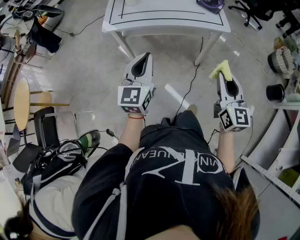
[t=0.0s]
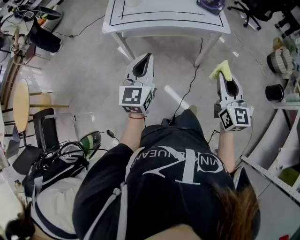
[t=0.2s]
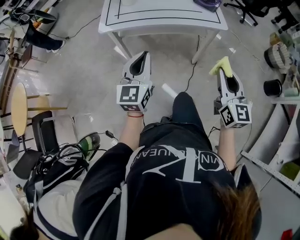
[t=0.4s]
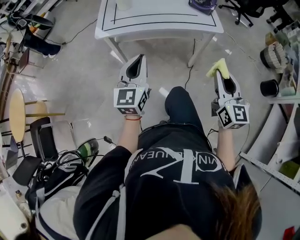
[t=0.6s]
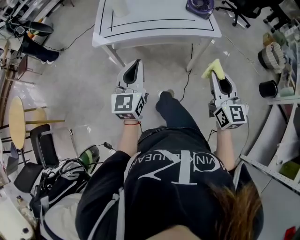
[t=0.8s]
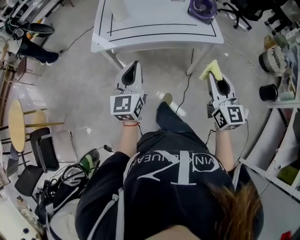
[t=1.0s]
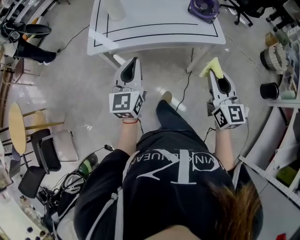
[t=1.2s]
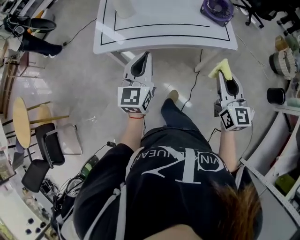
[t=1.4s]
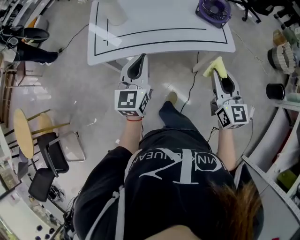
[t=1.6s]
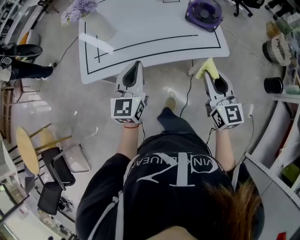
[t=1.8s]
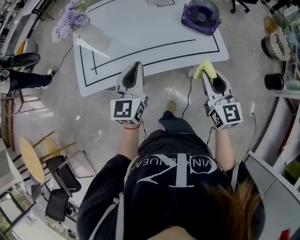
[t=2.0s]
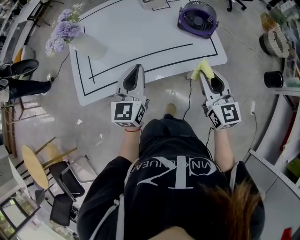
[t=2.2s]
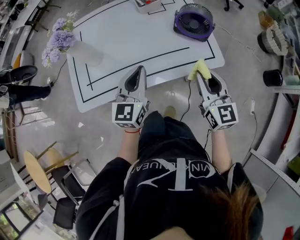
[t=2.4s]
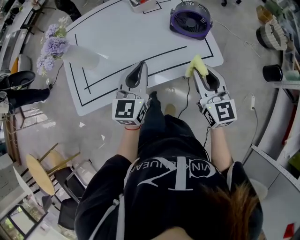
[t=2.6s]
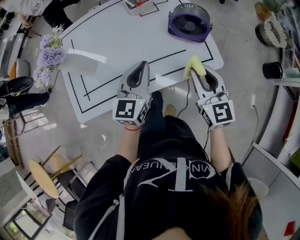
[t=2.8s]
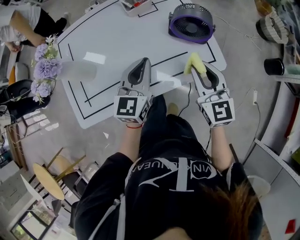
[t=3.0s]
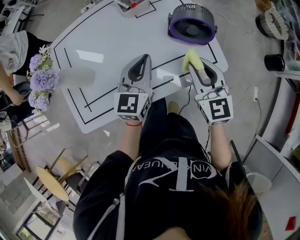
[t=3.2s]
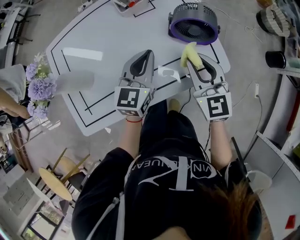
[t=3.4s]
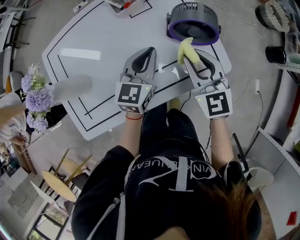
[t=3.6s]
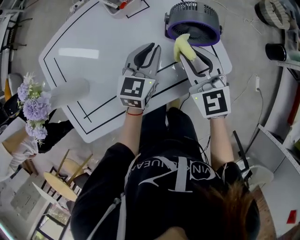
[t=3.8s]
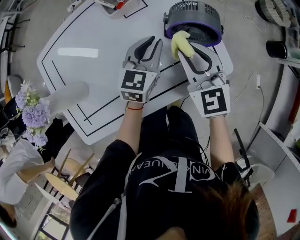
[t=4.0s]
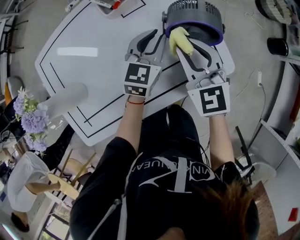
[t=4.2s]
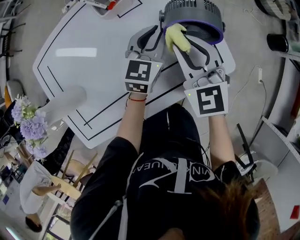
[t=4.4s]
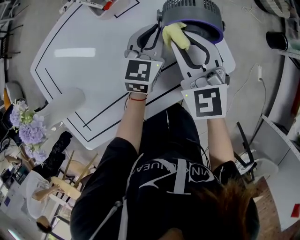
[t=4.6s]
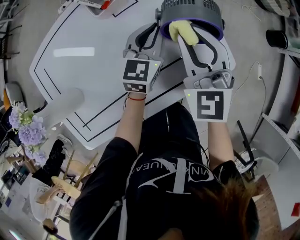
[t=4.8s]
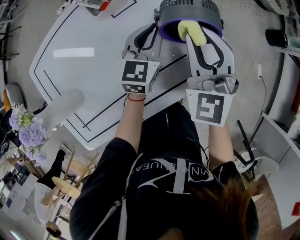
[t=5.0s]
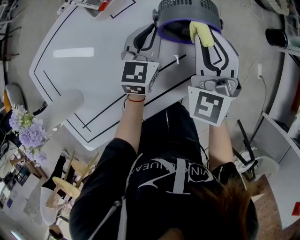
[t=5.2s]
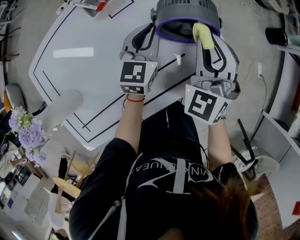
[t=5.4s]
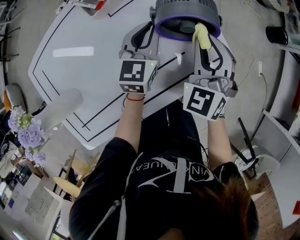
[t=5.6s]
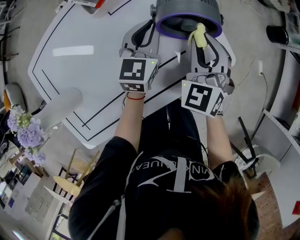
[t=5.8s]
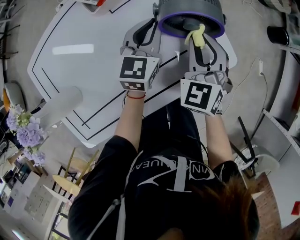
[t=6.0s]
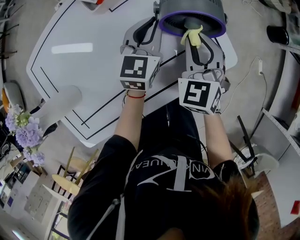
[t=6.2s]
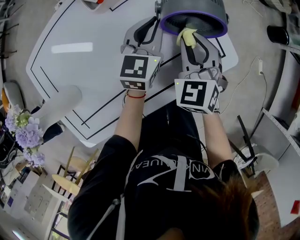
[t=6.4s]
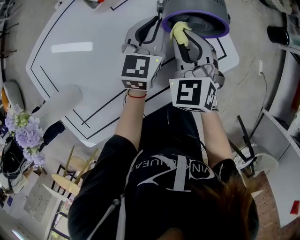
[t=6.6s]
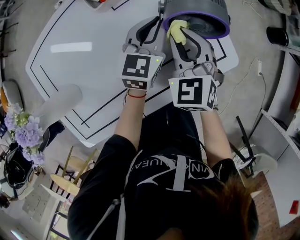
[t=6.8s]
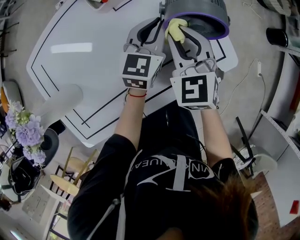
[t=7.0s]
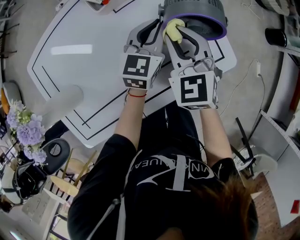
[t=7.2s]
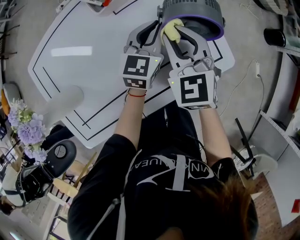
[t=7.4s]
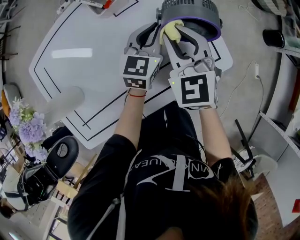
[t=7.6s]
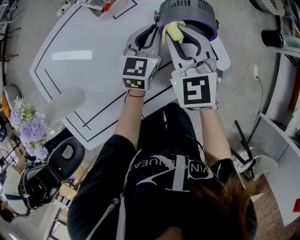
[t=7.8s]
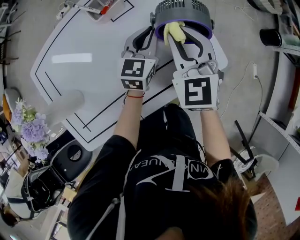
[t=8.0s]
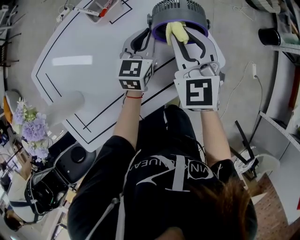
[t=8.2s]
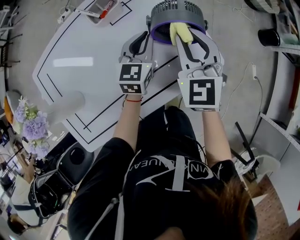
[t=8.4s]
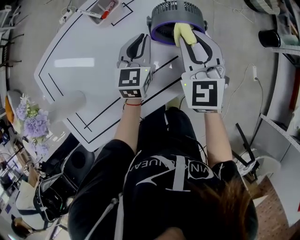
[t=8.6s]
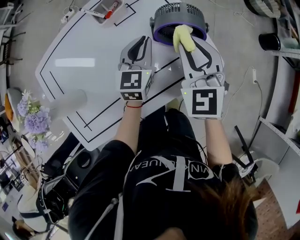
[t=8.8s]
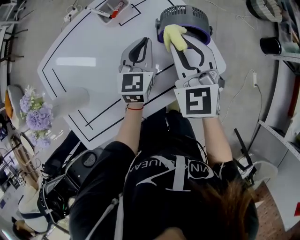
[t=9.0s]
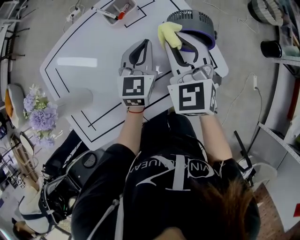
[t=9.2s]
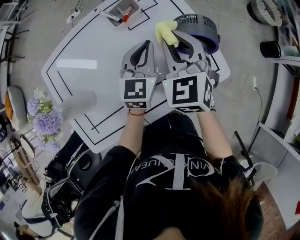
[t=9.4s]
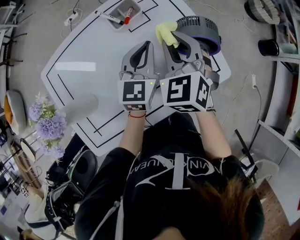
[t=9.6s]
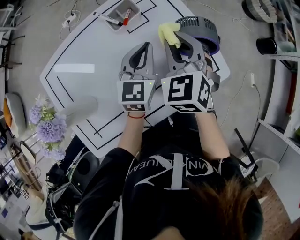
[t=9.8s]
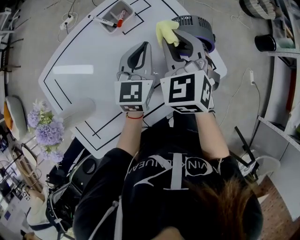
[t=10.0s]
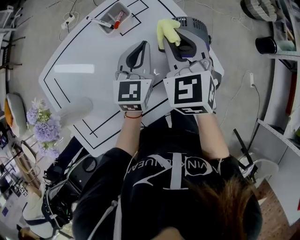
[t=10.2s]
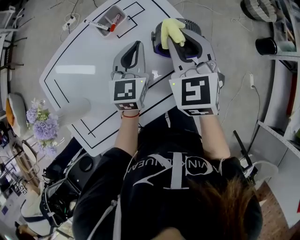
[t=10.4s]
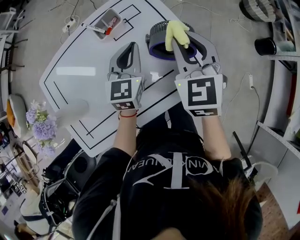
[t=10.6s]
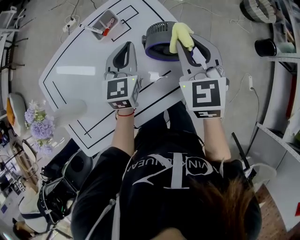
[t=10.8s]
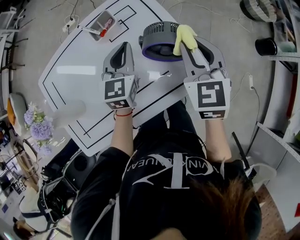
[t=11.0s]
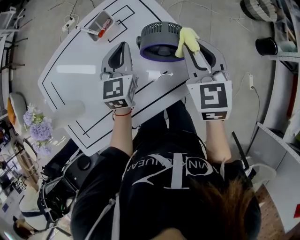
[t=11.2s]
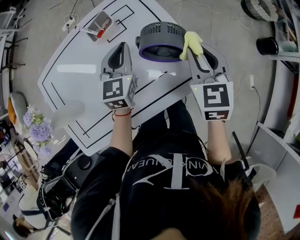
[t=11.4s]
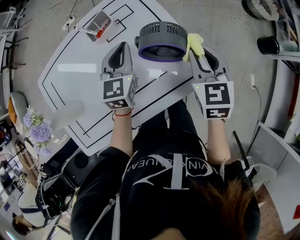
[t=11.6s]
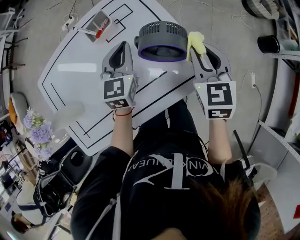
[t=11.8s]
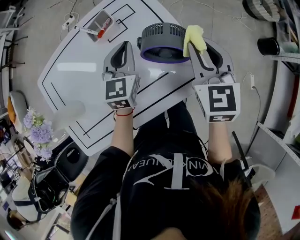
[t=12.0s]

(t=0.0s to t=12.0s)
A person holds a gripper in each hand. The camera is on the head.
t=0.0s - t=1.6s: The two grippers go about 25 cm forward.
t=1.6s - t=3.0s: The left gripper moves forward and to the right, some 25 cm. The right gripper is displaced forward by roughly 20 cm.
t=3.0s - t=4.4s: The right gripper is displaced forward by about 15 cm; the left gripper heads forward, downward and to the right, covering about 20 cm, and swivels some 20 degrees.
t=4.4s - t=6.0s: The right gripper is displaced to the right by about 5 cm, and changes its angle by roughly 30 degrees.
t=6.0s - t=7.6s: The right gripper travels to the left by roughly 10 cm.
t=7.6s - t=9.0s: The right gripper goes approximately 5 cm upward. The left gripper changes place by roughly 5 cm.
t=9.0s - t=10.4s: The left gripper moves approximately 5 cm. The right gripper changes place by about 5 cm.
t=10.4s - t=12.0s: The right gripper heads to the right, covering approximately 10 cm.

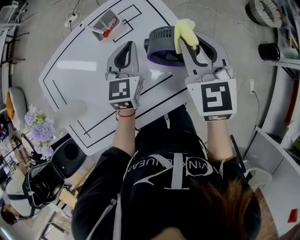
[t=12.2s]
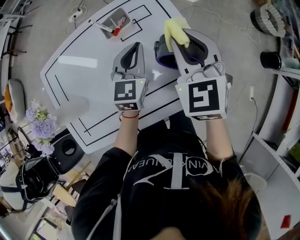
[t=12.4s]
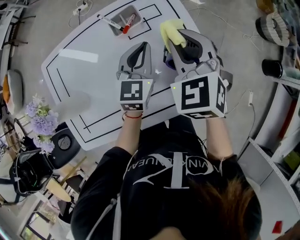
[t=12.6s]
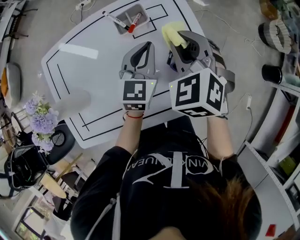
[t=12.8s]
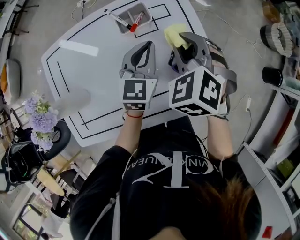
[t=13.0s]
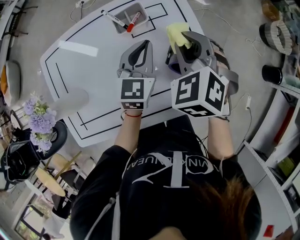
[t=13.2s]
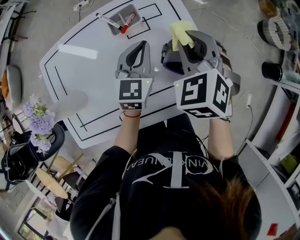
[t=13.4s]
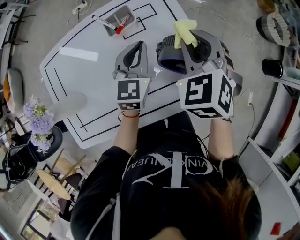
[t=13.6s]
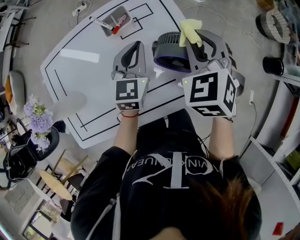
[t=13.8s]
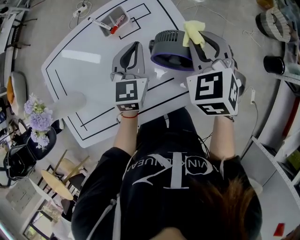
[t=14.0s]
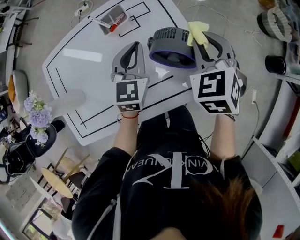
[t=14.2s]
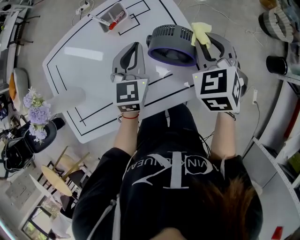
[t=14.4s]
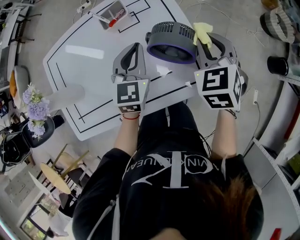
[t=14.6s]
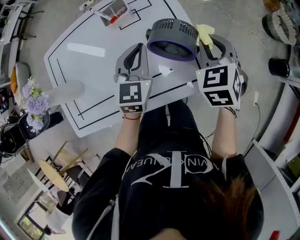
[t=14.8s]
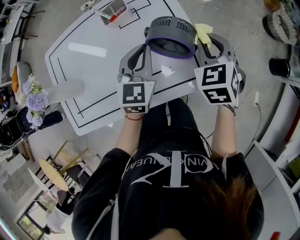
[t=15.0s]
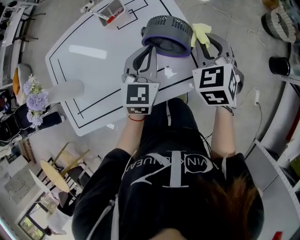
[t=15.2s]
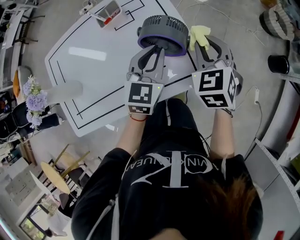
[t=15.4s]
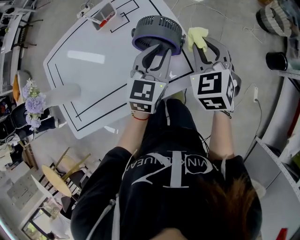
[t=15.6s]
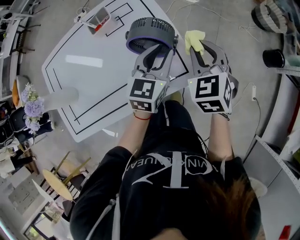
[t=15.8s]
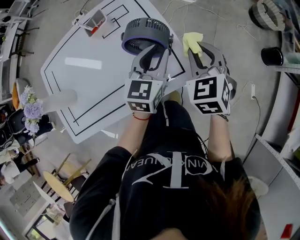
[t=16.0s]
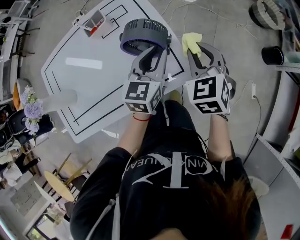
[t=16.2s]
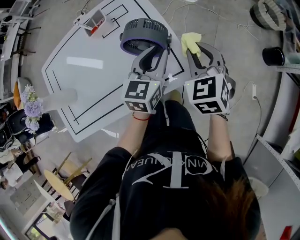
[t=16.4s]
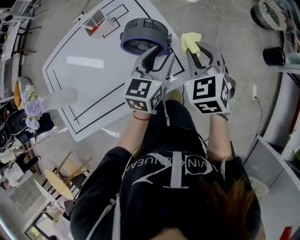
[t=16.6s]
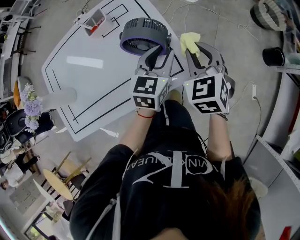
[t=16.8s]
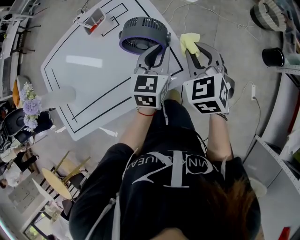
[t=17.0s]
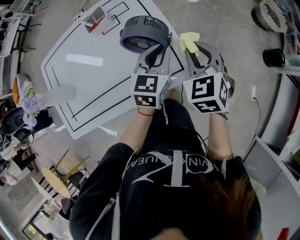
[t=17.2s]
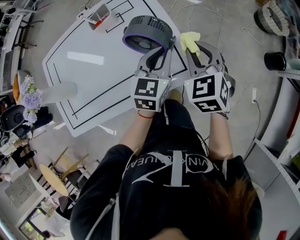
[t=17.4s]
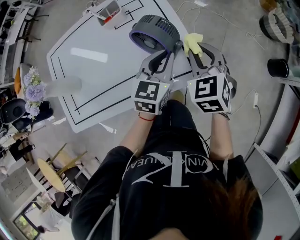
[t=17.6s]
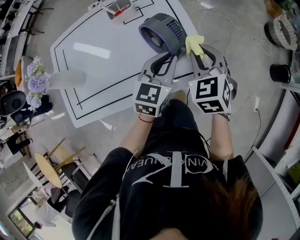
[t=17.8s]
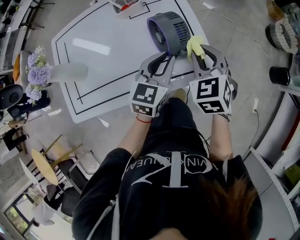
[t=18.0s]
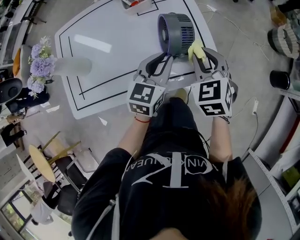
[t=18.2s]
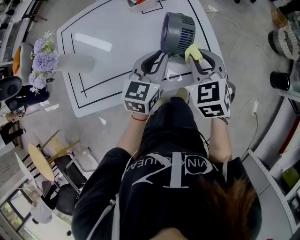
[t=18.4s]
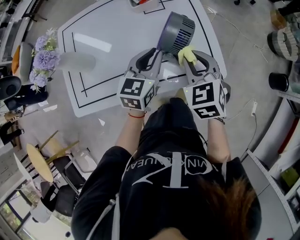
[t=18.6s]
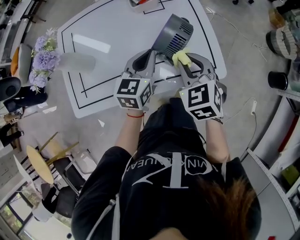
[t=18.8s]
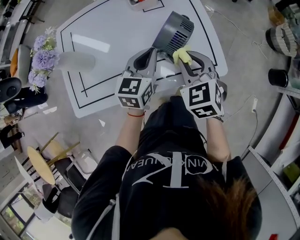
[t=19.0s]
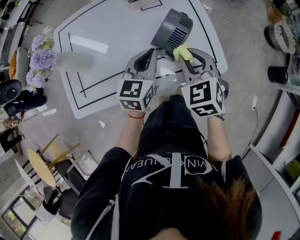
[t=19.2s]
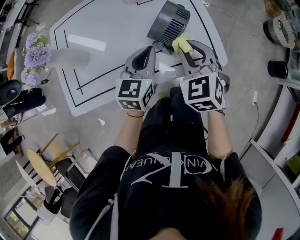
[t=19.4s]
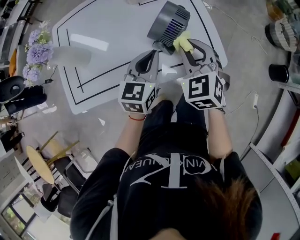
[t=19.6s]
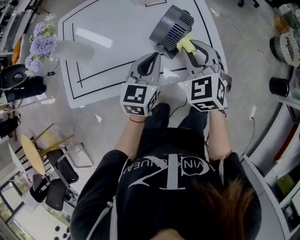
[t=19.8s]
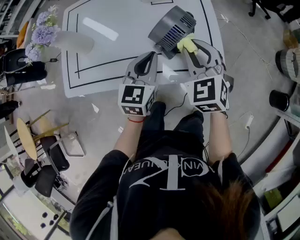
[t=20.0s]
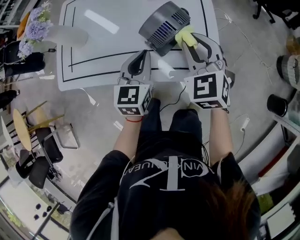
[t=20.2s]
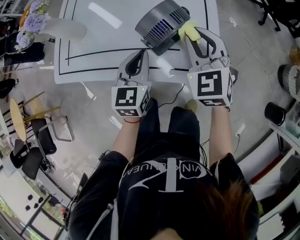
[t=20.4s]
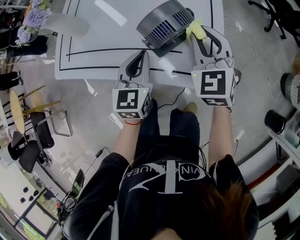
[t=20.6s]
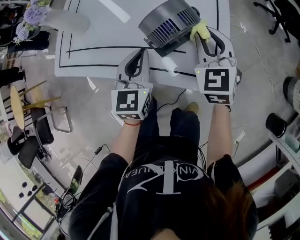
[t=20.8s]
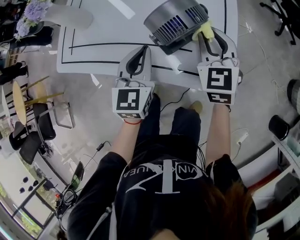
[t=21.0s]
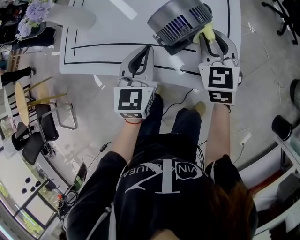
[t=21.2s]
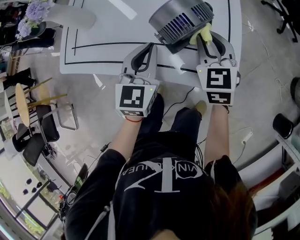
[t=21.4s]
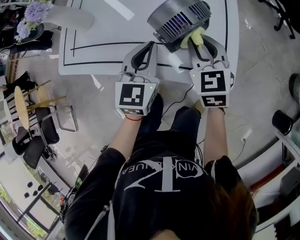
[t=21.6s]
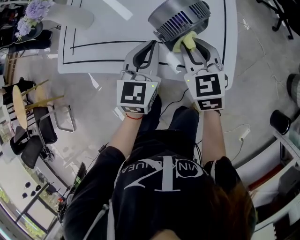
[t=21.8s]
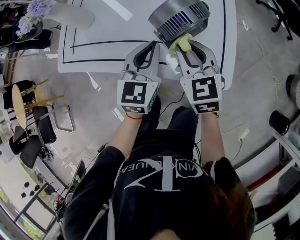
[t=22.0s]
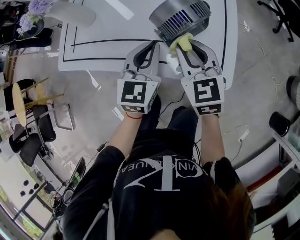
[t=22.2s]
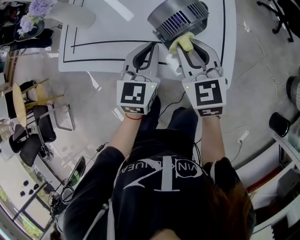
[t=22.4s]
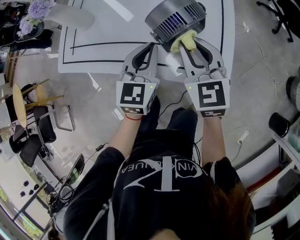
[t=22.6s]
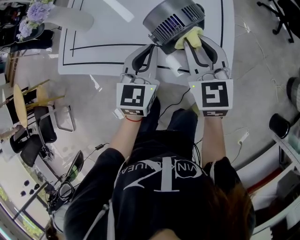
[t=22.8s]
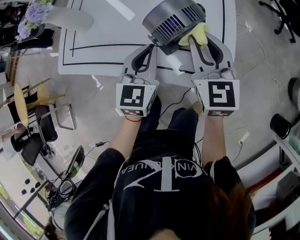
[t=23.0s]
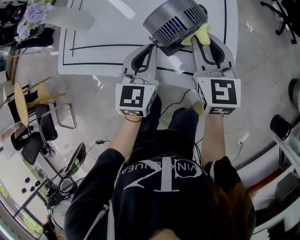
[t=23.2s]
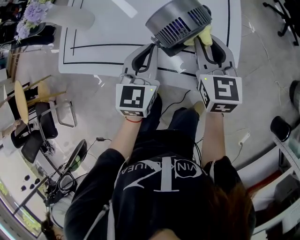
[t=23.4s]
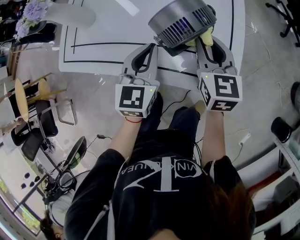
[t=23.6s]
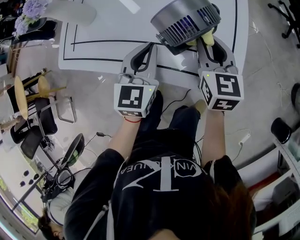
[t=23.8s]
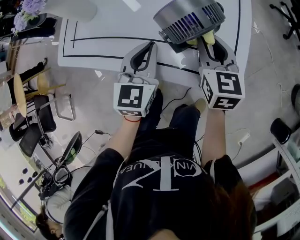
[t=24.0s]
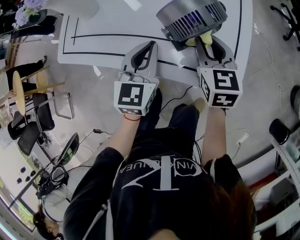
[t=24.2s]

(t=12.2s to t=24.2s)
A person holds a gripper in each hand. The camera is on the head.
t=12.2s - t=13.8s: The right gripper goes to the left and returns, some 10 cm each way, and rotates about 30 degrees.
t=13.8s - t=15.2s: The left gripper travels to the right and backward by about 10 cm, while the right gripper travels to the right by approximately 10 cm.
t=15.2s - t=16.6s: The right gripper heads to the right, covering about 5 cm, while the left gripper travels to the right by approximately 10 cm, rotates approximately 20 degrees, and opens.
t=16.6s - t=18.2s: The two grippers go approximately 15 cm to the left and backward. The left gripper closes its fingers.
t=18.2s - t=19.8s: Both grippers move to the left, approximately 5 cm.
t=19.8s - t=21.2s: The left gripper swivels roughly 30 degrees, while the right gripper shifts roughly 10 cm downward and forward.
t=21.2s - t=22.6s: The right gripper moves to the left and backward, about 5 cm.
t=22.6s - t=24.2s: The right gripper shifts roughly 5 cm downward.
